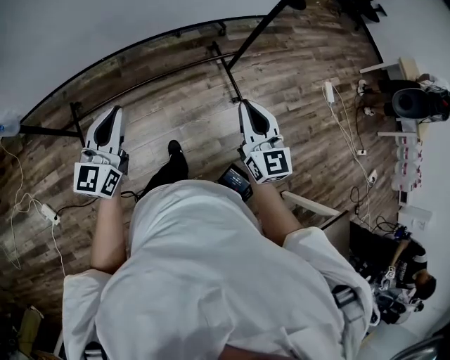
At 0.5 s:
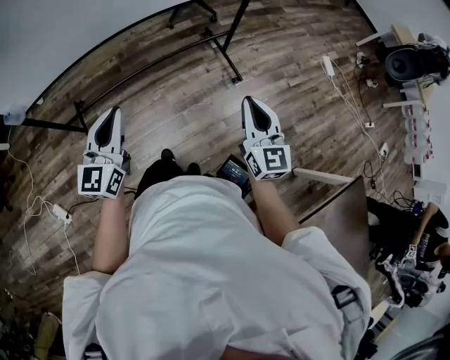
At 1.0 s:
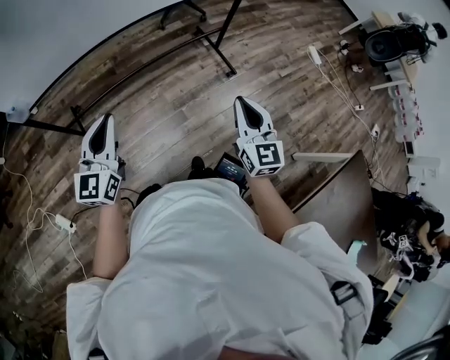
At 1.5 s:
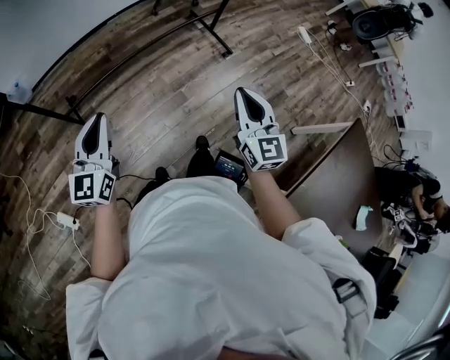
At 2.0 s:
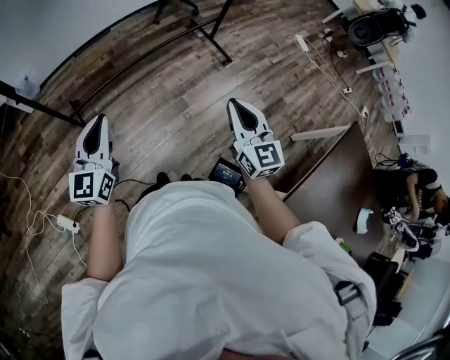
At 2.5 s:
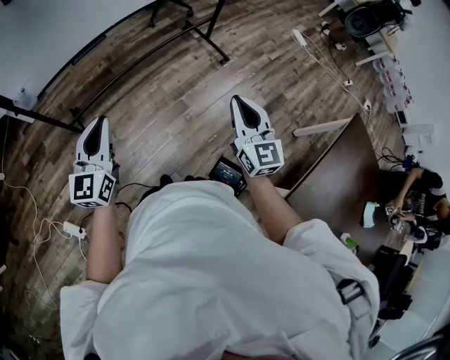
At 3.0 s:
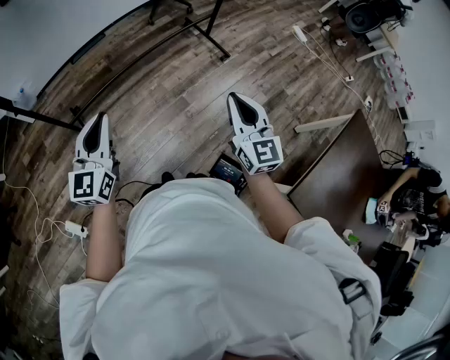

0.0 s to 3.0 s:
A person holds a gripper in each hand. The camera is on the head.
0.0 to 1.5 s: The two grippers go about 35 cm backward and to the left.
1.5 to 3.0 s: The grippers stay close to where they were, moving slightly.

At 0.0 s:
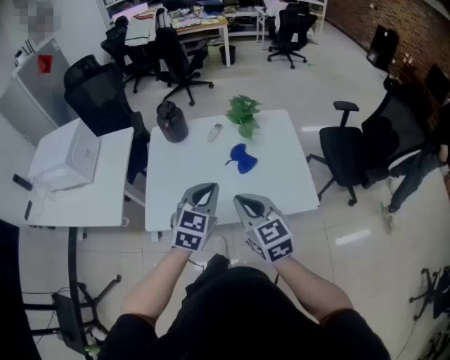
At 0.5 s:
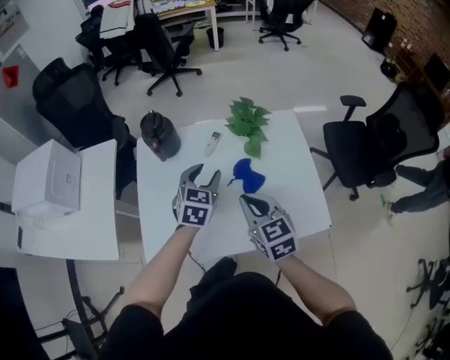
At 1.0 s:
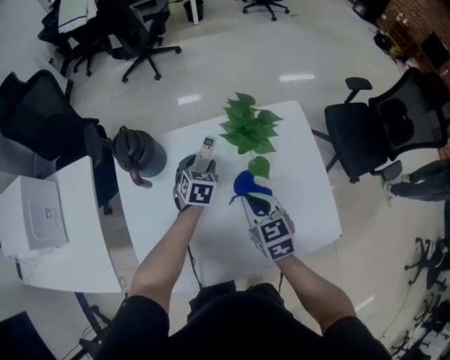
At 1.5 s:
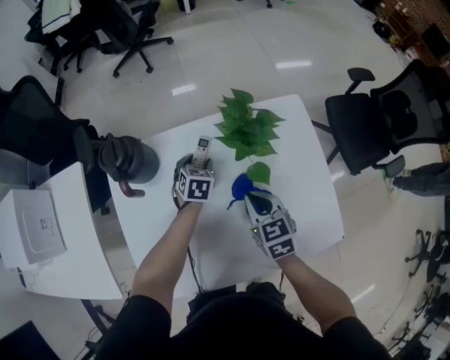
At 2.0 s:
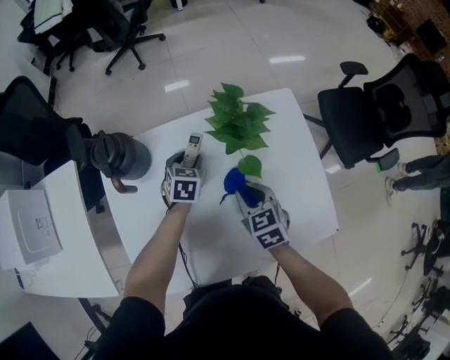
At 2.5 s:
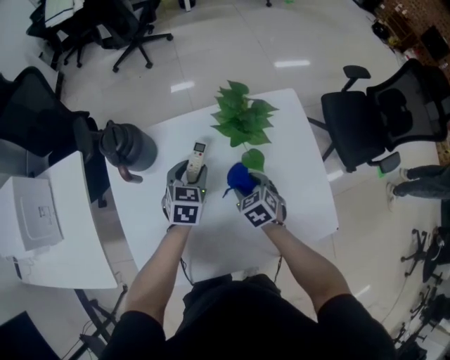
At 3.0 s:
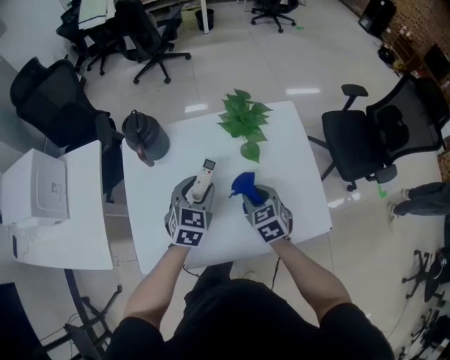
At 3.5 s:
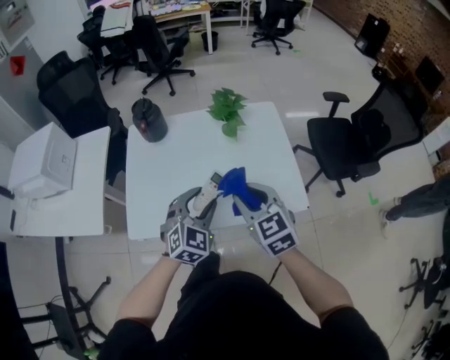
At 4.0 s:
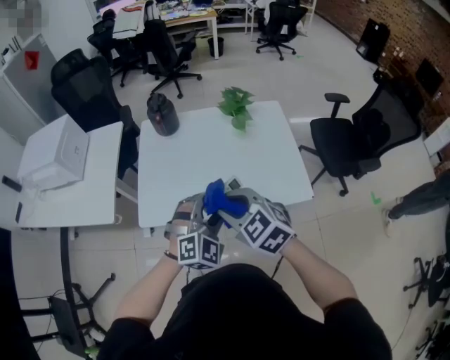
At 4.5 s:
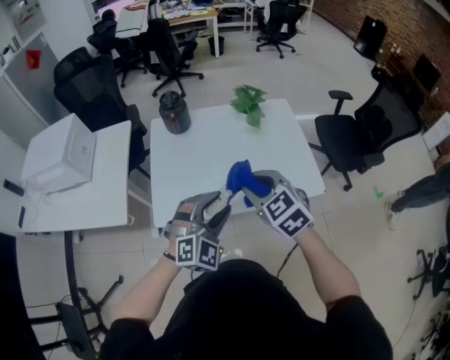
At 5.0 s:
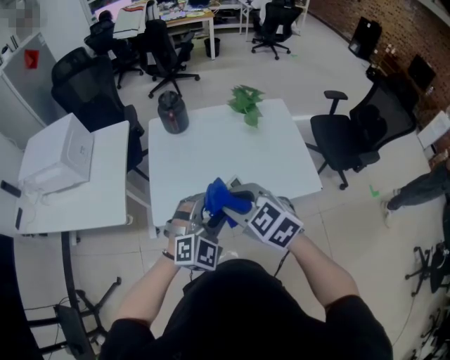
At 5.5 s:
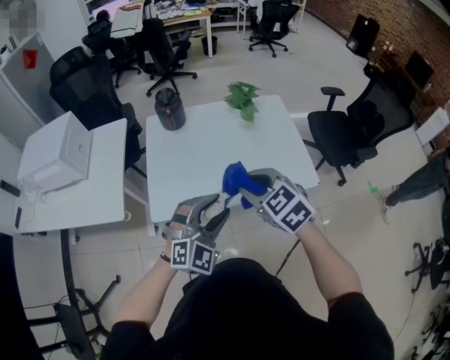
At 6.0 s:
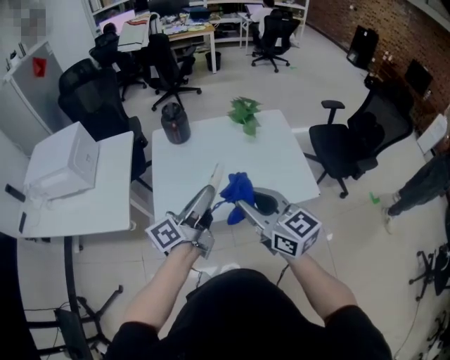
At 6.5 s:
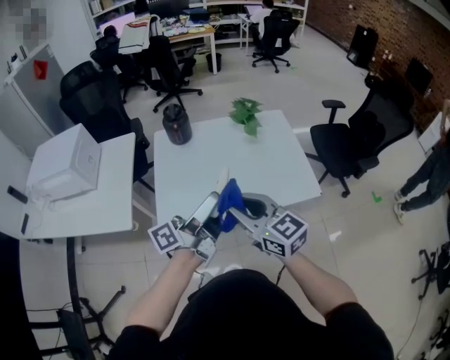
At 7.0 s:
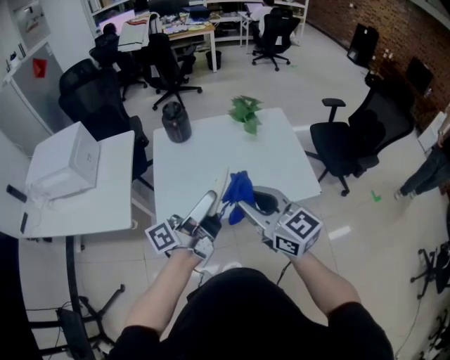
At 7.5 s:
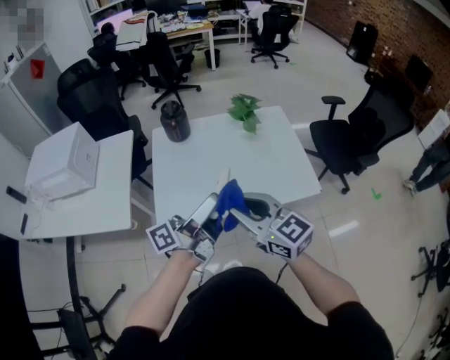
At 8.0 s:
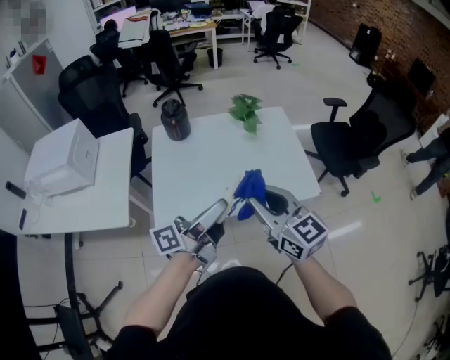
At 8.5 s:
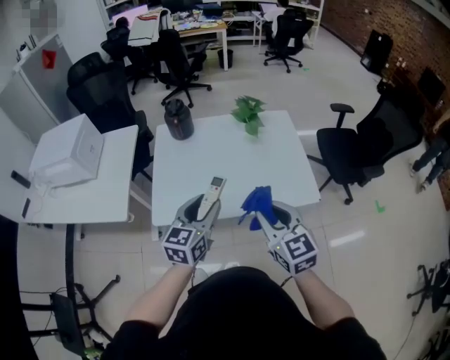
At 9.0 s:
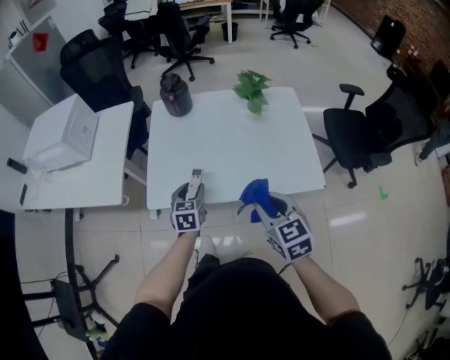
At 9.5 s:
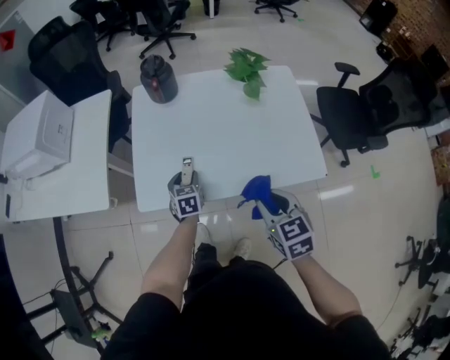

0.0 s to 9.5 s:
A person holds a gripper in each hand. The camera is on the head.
0.0 to 2.0 s: Both grippers move forward and downward, some 40 cm. The right gripper turns by approximately 30 degrees, while the left gripper rotates approximately 30 degrees, and opens up.
2.0 to 4.0 s: Both grippers move backward and upward, approximately 50 cm. The right gripper rotates approximately 40 degrees, and opens, then closes once more; the left gripper rolls clockwise, seen from behind, by roughly 50 degrees.
4.0 to 5.5 s: The left gripper travels to the left and backward by some 10 cm.
5.5 to 7.5 s: The right gripper travels backward by approximately 5 cm, and turns by approximately 30 degrees; the left gripper goes about 10 cm upward, and rolls counterclockwise, seen from behind, by about 110 degrees.
7.5 to 9.5 s: The right gripper goes roughly 20 cm downward and to the right, and tilts its fingers some 30 degrees downward, while the left gripper goes about 40 cm downward and forward, and tips its fingers downward by approximately 70 degrees.

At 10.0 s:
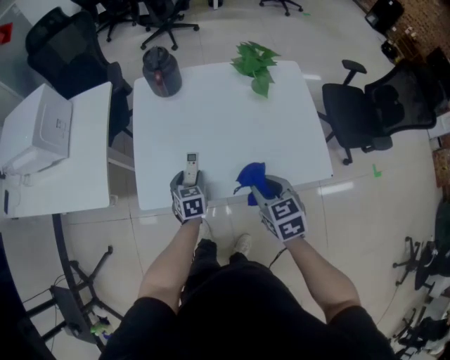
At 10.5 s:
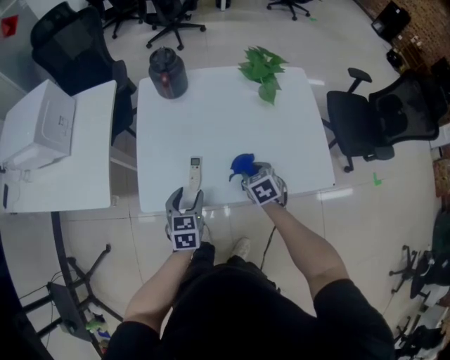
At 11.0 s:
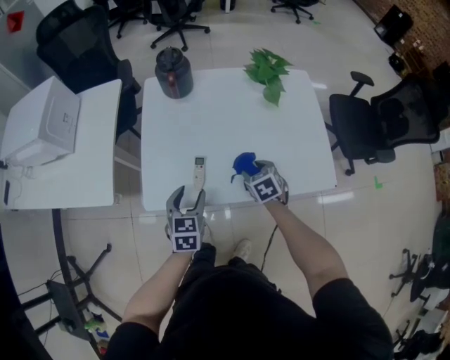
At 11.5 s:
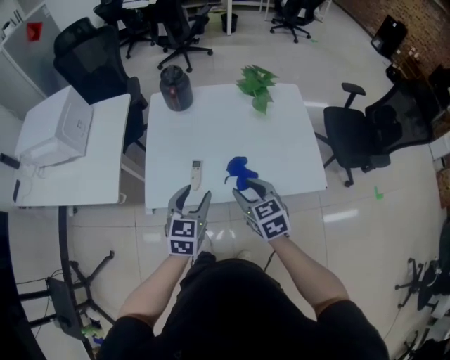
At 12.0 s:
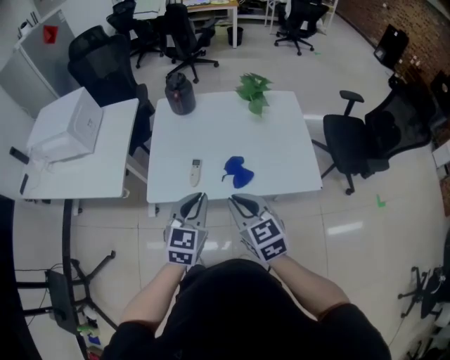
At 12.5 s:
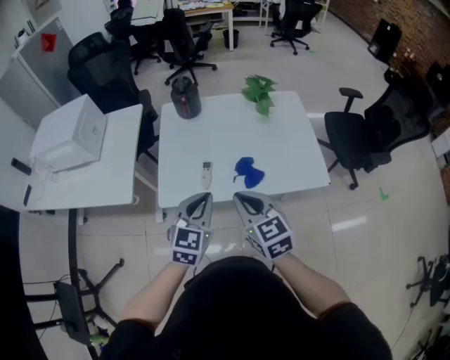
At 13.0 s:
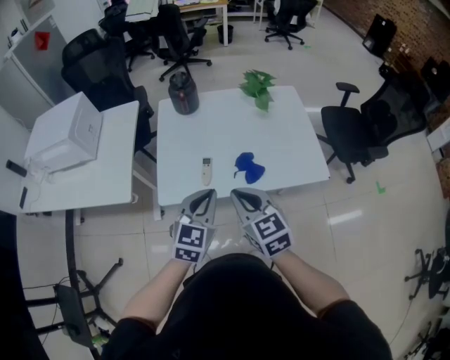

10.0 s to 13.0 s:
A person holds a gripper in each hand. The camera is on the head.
10.0 to 11.5 s: The left gripper goes some 20 cm upward and backward, and turns by approximately 20 degrees, while the right gripper moves roughly 15 cm downward and comes back.
11.5 to 13.0 s: The right gripper travels upward, to the left and backward by some 15 cm, and closes up. The left gripper heads upward and backward, covering about 10 cm, and closes.

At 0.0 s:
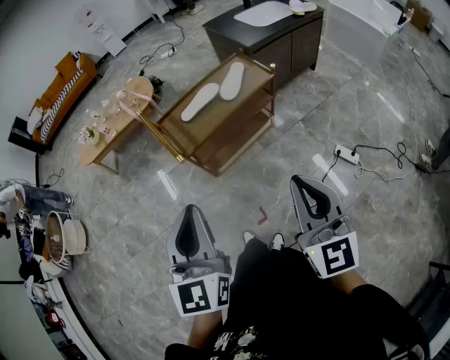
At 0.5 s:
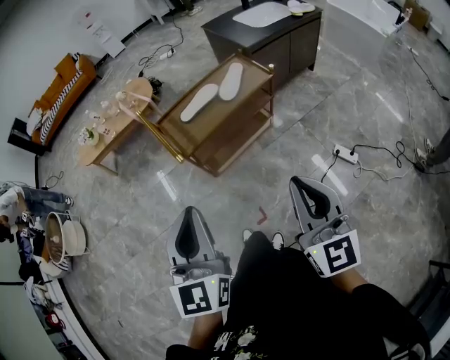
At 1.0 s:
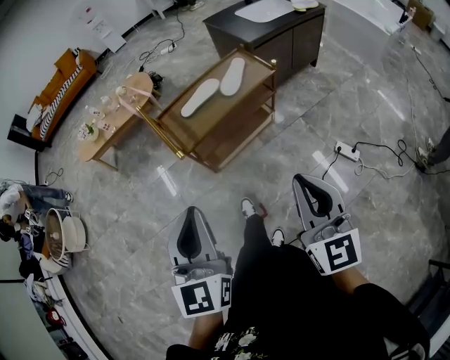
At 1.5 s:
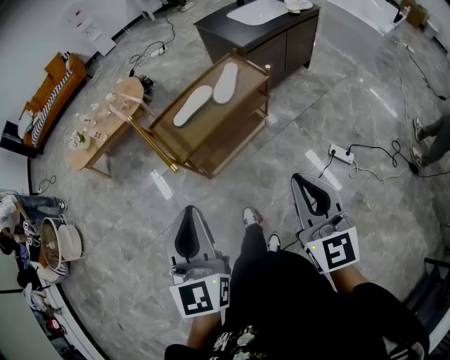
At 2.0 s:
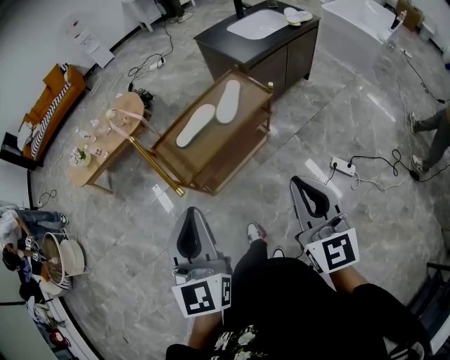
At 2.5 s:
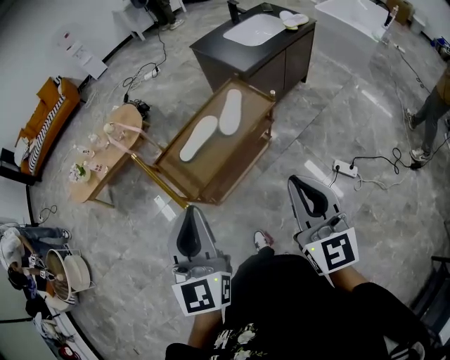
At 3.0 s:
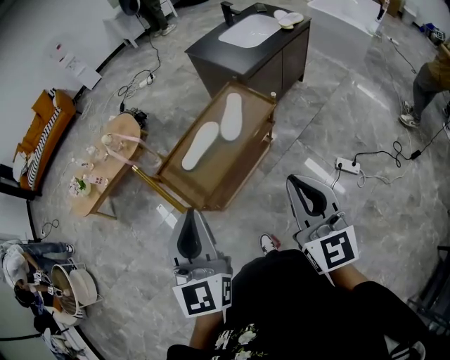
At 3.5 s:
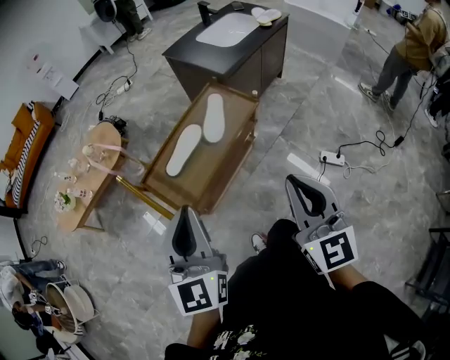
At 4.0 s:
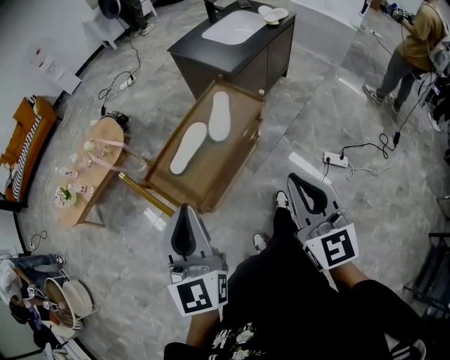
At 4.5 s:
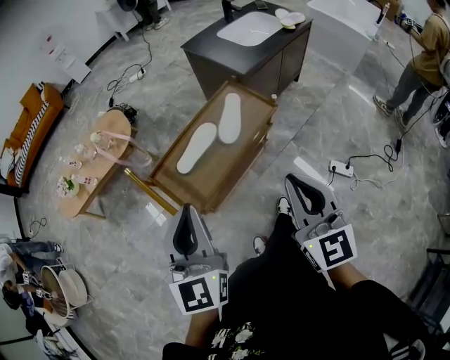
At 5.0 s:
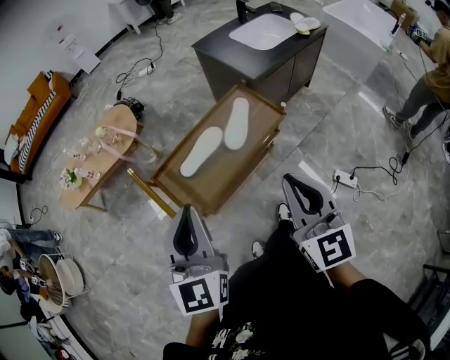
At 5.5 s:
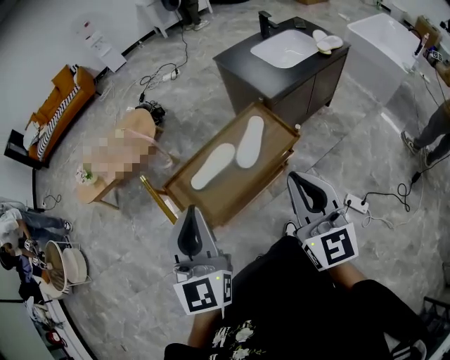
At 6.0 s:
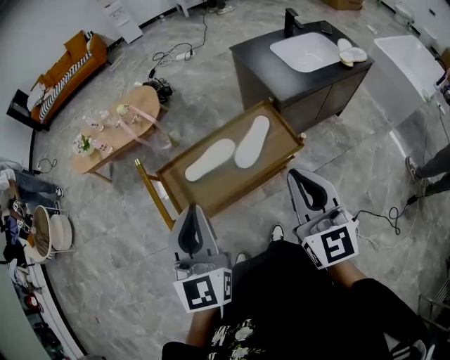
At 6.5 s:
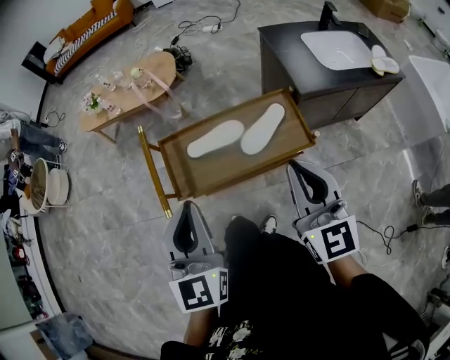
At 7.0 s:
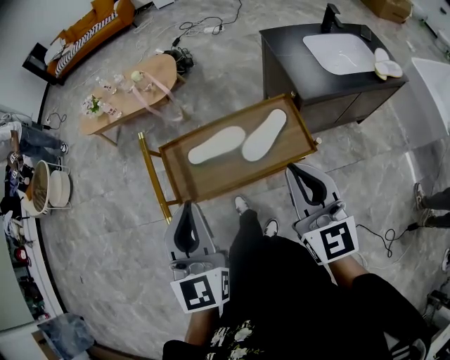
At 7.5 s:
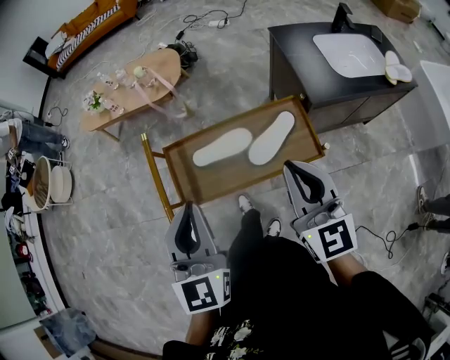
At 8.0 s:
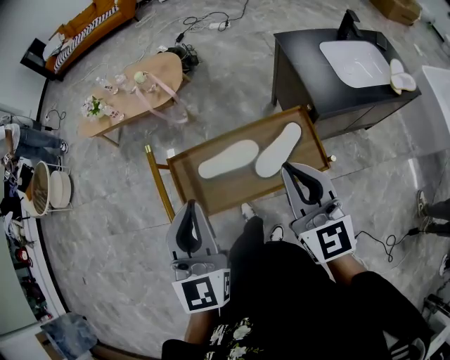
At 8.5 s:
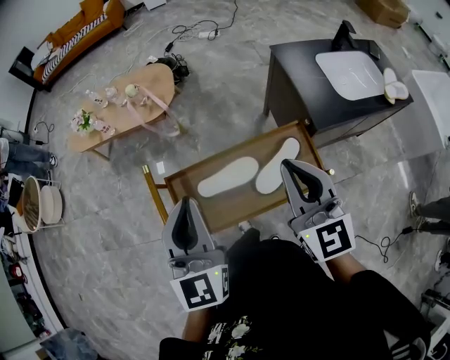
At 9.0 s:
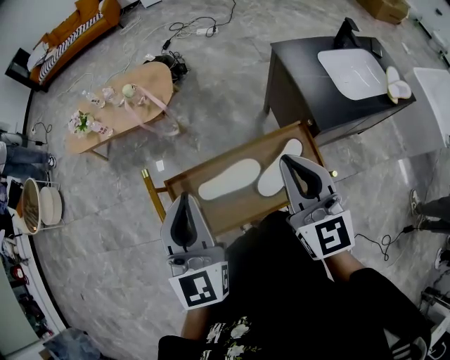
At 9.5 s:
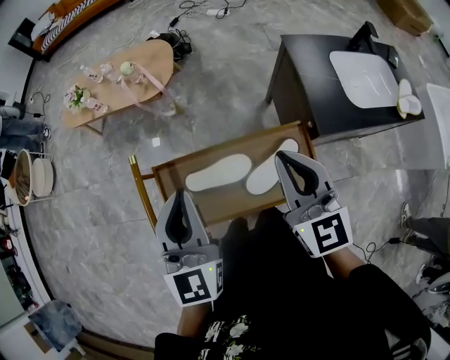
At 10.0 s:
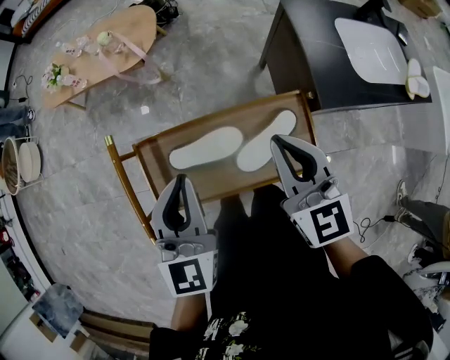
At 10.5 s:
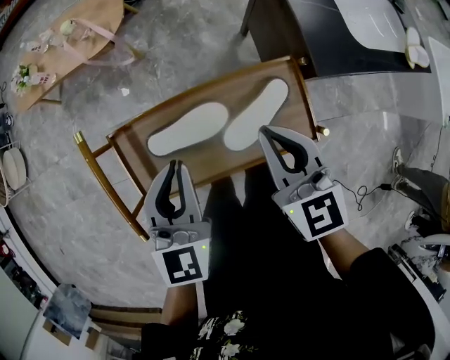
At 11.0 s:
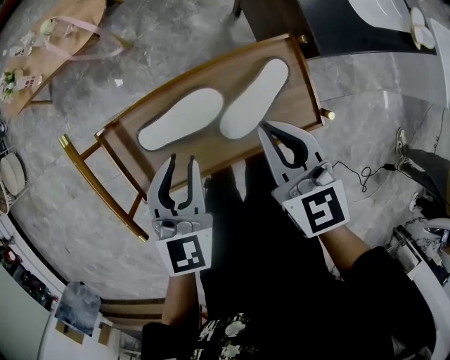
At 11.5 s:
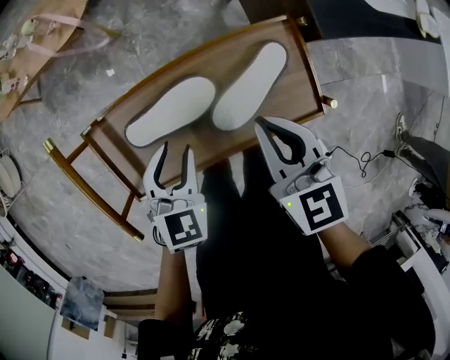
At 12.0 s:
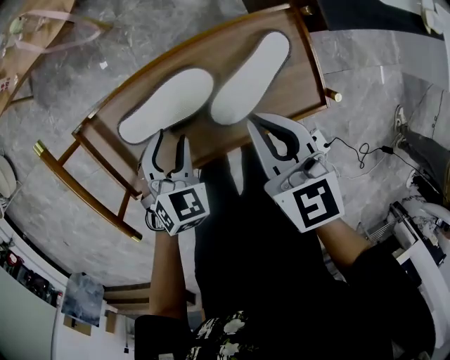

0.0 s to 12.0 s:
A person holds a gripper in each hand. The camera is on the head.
0.0 to 2.0 s: The two grippers go about 10 cm forward.
2.0 to 4.0 s: The two grippers go approximately 10 cm forward.
4.0 to 6.0 s: The left gripper is displaced forward and to the right by roughly 10 cm, and changes its angle by some 20 degrees, while the right gripper moves forward, some 15 cm, and changes its angle by roughly 20 degrees.
6.0 to 8.0 s: The left gripper travels forward by roughly 10 cm. The right gripper travels forward by about 15 cm.
8.0 to 10.0 s: The right gripper goes approximately 15 cm forward and downward; the left gripper heads forward, downward and to the right, covering approximately 15 cm.
10.0 to 12.0 s: The right gripper shifts about 15 cm downward, and turns by some 20 degrees. The left gripper shifts about 30 cm downward, points its fingers some 40 degrees further downward, and opens its fingers.
